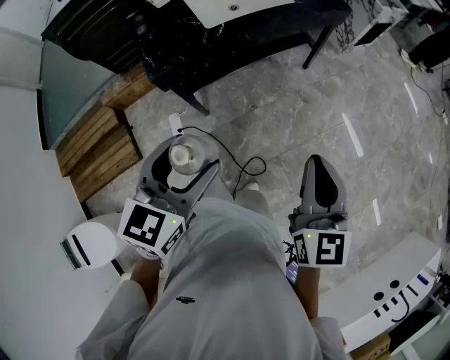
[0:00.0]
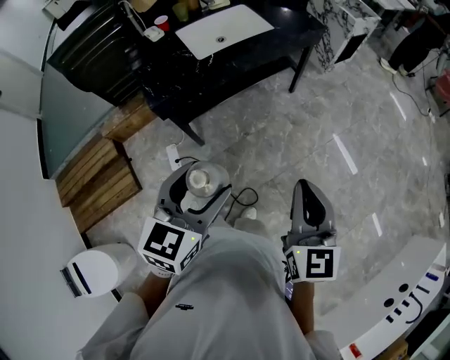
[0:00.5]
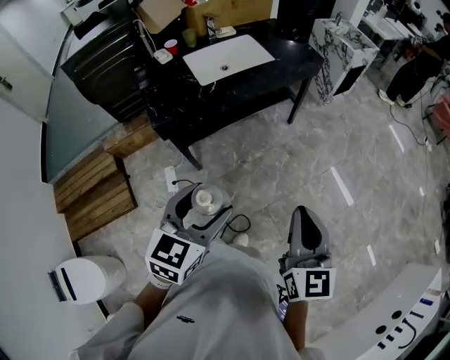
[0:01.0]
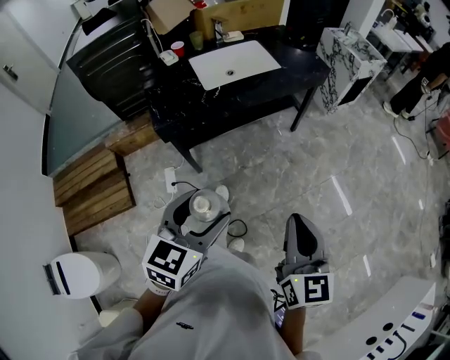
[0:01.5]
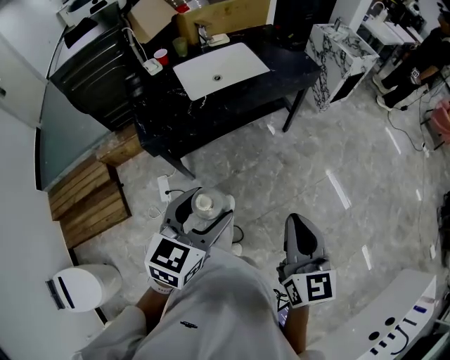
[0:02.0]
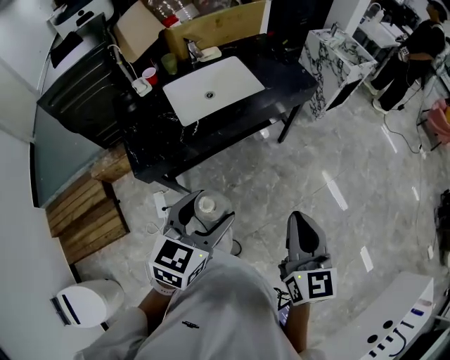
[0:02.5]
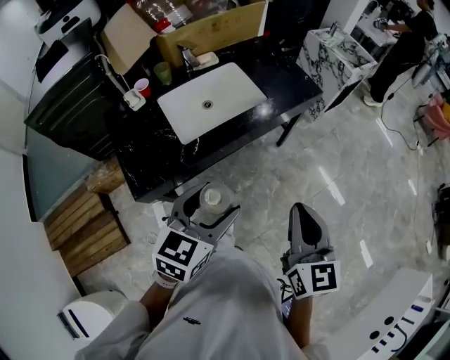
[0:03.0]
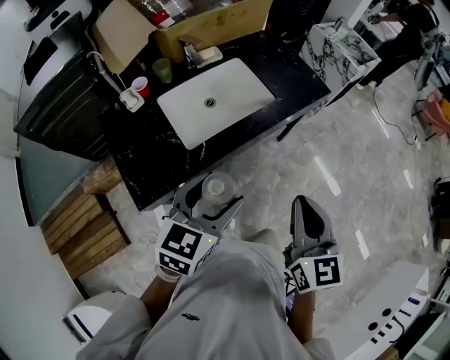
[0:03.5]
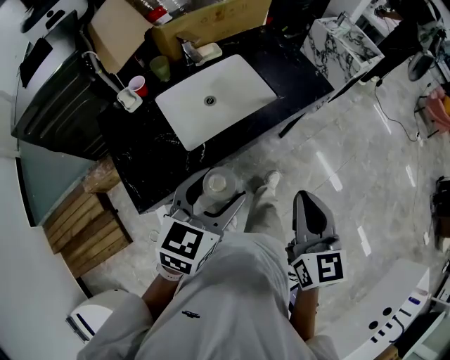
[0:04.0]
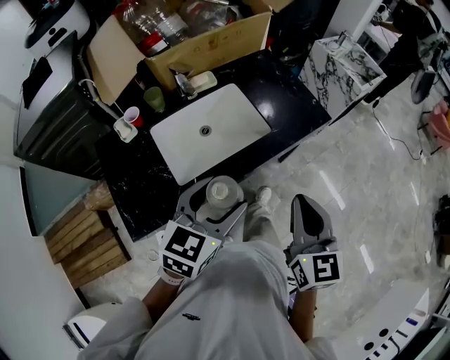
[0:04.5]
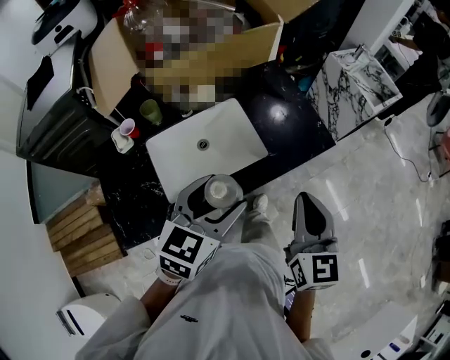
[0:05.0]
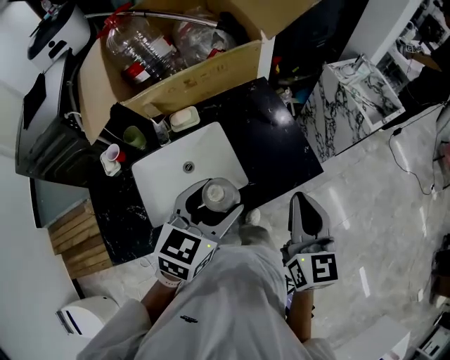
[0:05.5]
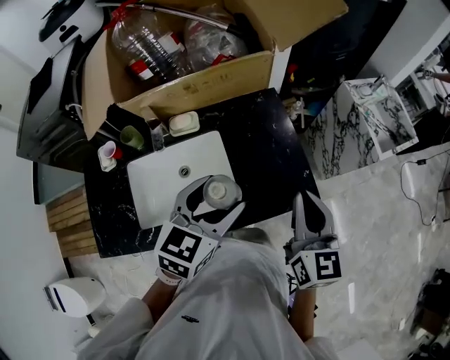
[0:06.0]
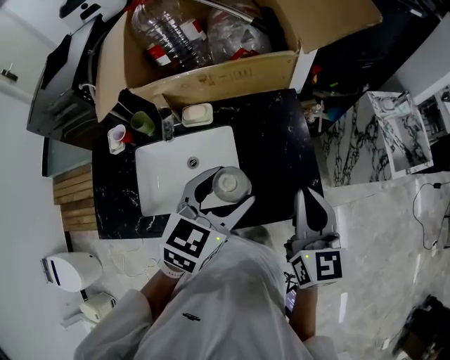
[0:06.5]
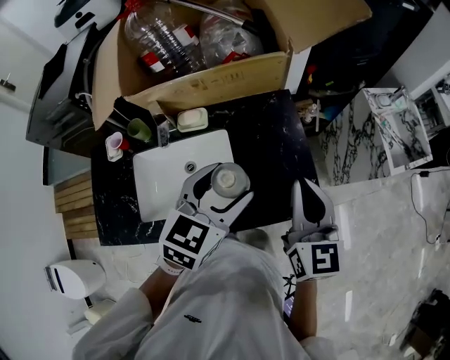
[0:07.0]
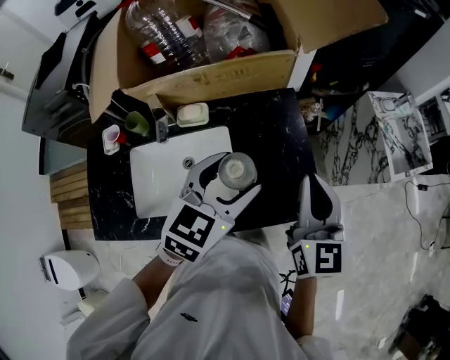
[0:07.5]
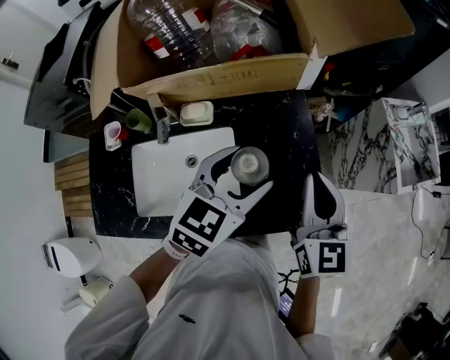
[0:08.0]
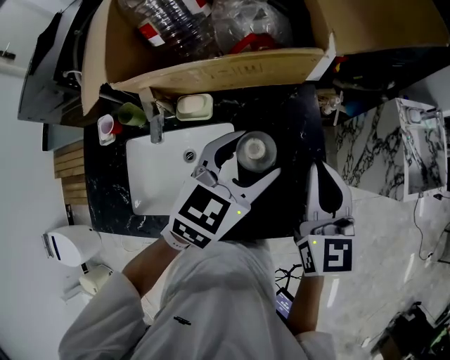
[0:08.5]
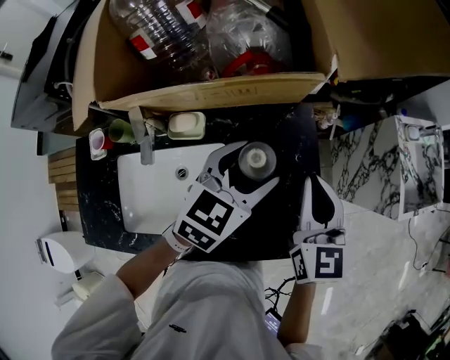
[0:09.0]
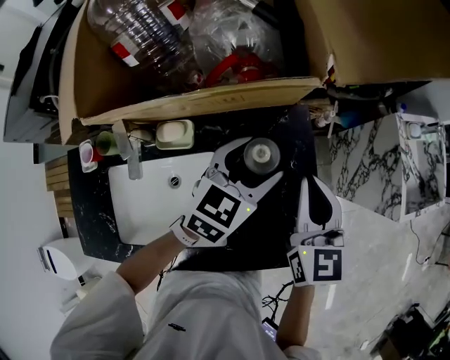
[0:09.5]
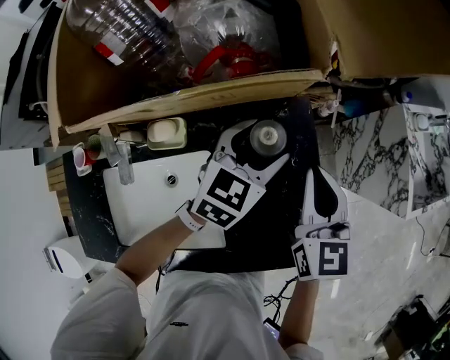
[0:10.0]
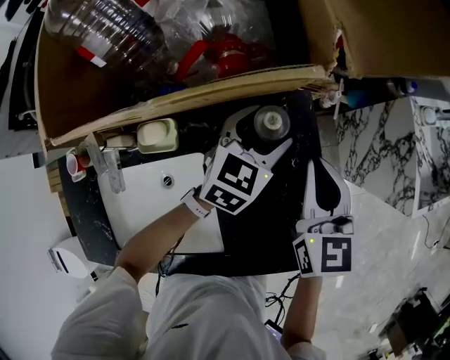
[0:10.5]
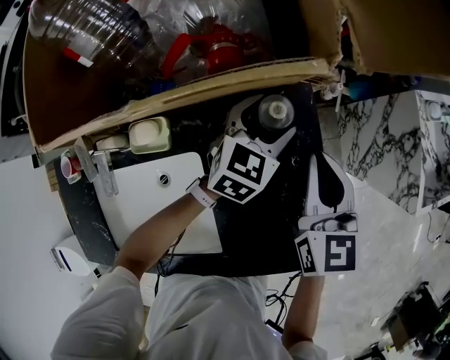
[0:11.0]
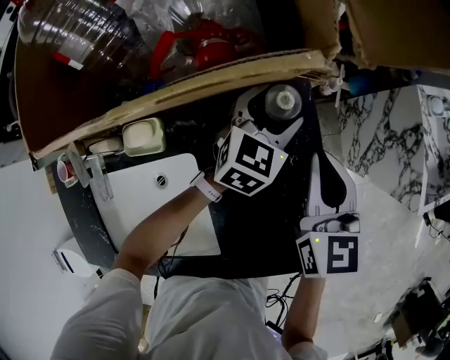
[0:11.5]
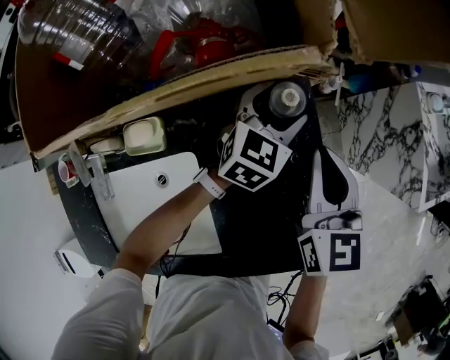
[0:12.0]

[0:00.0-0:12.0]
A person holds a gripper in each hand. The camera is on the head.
0:00.0 to 0:02.0: The left gripper is displaced to the right by about 10 cm, while the right gripper moves approximately 5 cm backward and comes back.
0:02.0 to 0:04.0: The left gripper shifts approximately 30 cm forward, while the right gripper shifts approximately 30 cm forward and to the left.
0:04.0 to 0:06.0: The pair of grippers is taken forward, about 40 cm.
0:06.0 to 0:08.0: Both grippers travel together forward, some 15 cm.
0:08.0 to 0:10.0: The two grippers go approximately 20 cm forward and downward.
0:10.0 to 0:12.0: The left gripper moves downward and forward, roughly 15 cm. Meanwhile the right gripper travels downward by approximately 5 cm.

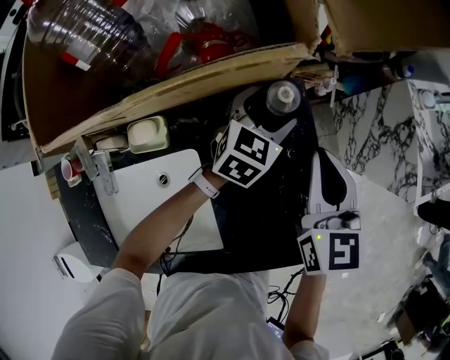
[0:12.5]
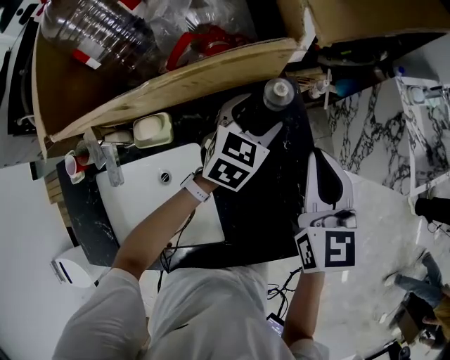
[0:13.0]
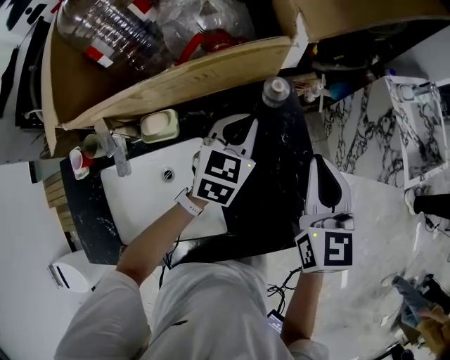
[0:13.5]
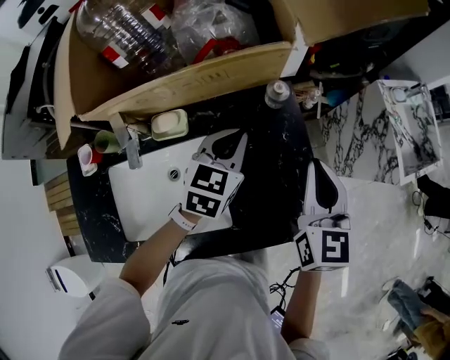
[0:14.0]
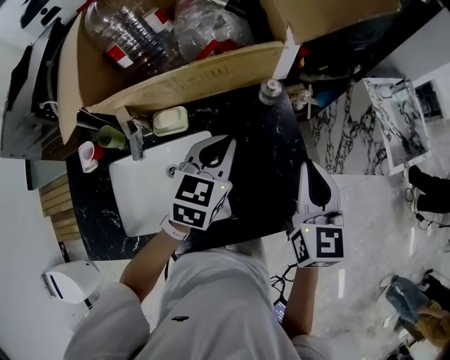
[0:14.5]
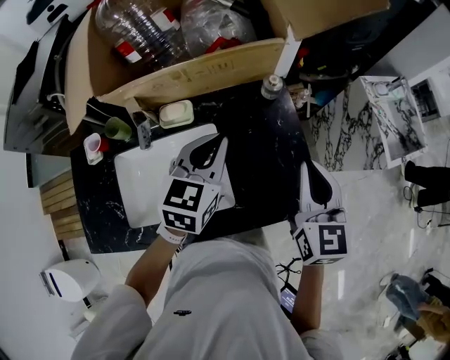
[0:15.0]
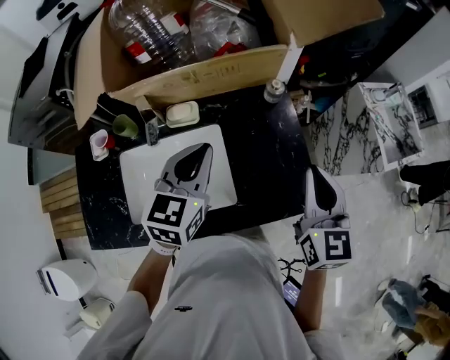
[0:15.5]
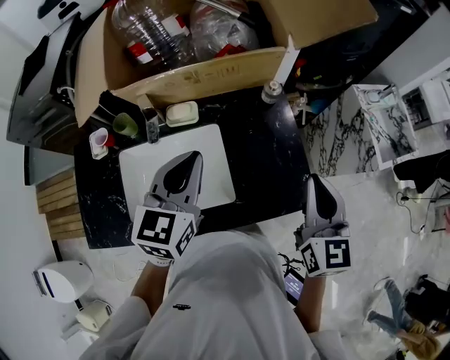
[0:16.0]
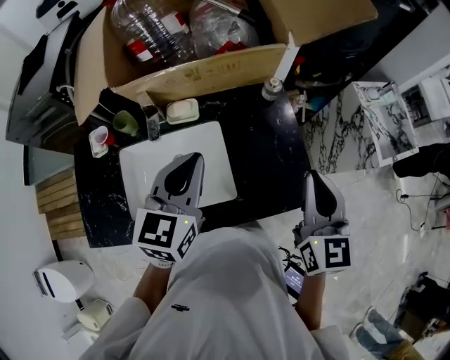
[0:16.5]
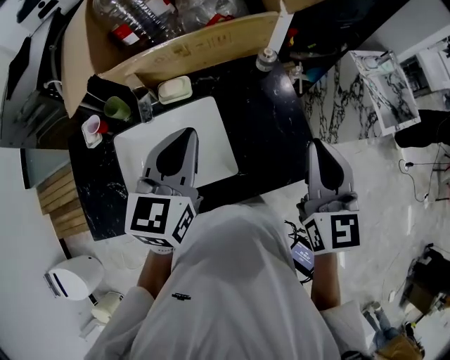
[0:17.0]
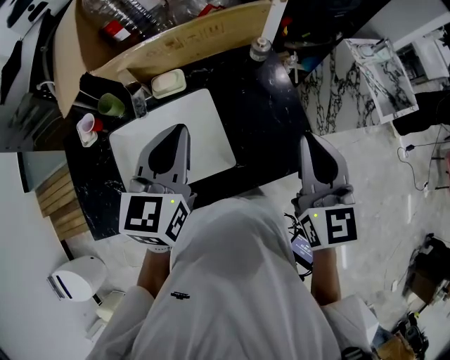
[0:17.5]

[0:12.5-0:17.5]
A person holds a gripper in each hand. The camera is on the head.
0:12.5 to 0:15.0: The right gripper goes roughly 20 cm backward and upward, while the left gripper goes about 35 cm backward, upward and to the left, and closes.
0:15.0 to 0:17.5: The left gripper heads backward, upward and to the left, covering about 15 cm; the right gripper heads backward and upward, covering roughly 10 cm.

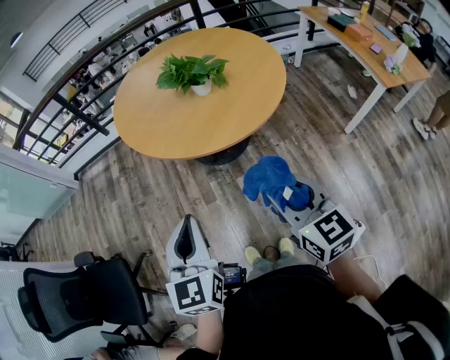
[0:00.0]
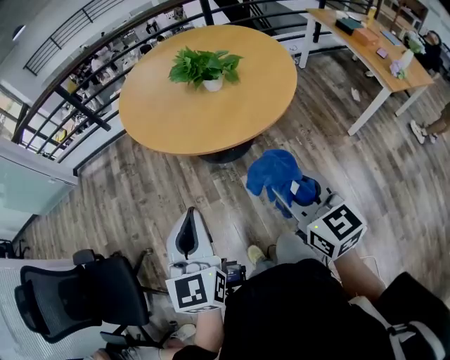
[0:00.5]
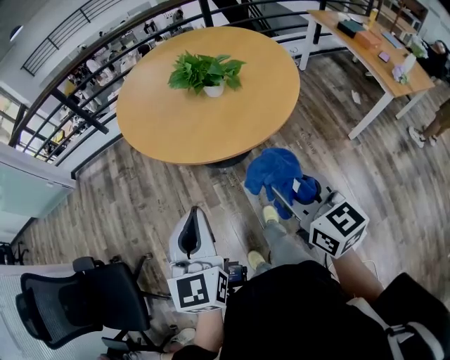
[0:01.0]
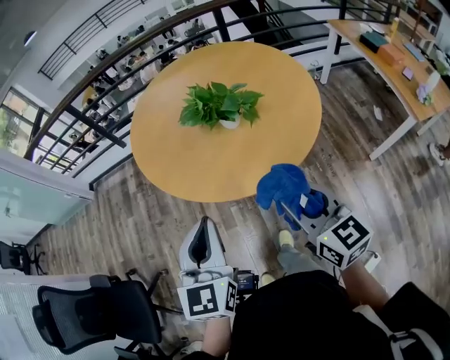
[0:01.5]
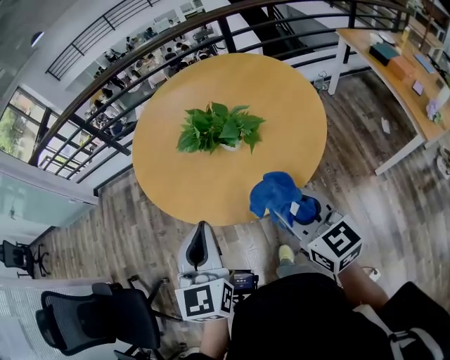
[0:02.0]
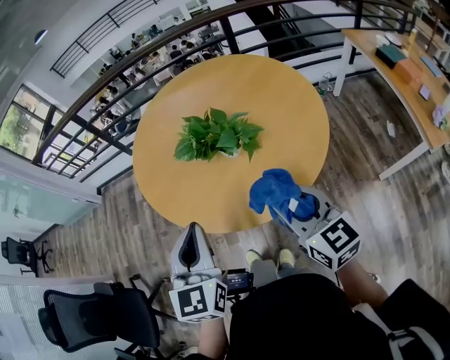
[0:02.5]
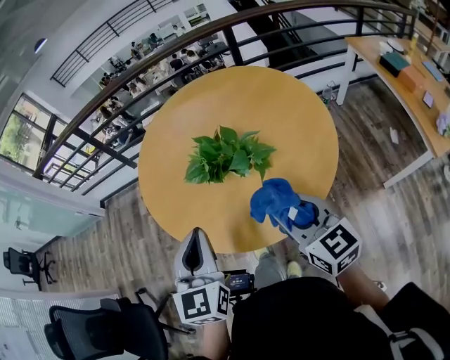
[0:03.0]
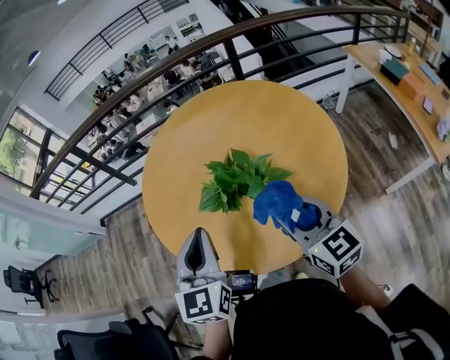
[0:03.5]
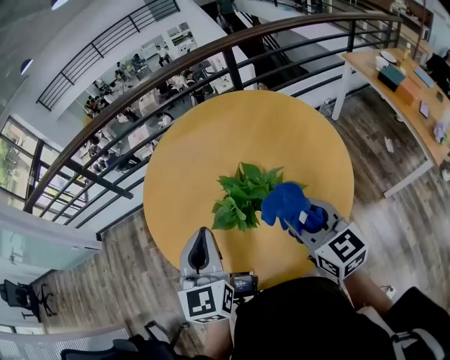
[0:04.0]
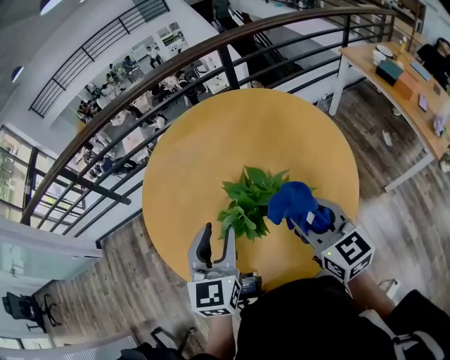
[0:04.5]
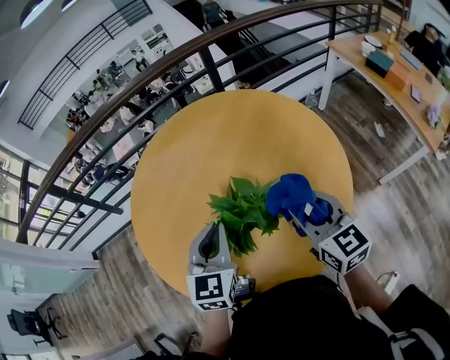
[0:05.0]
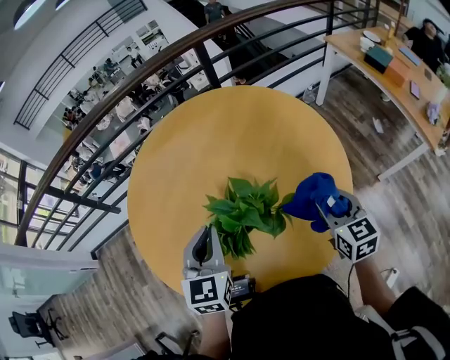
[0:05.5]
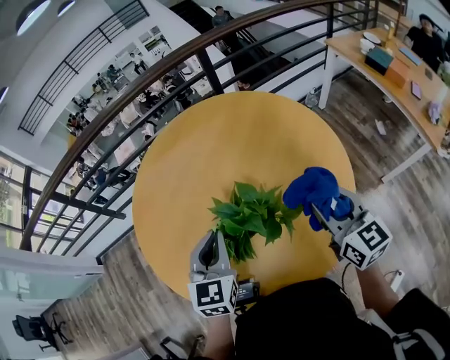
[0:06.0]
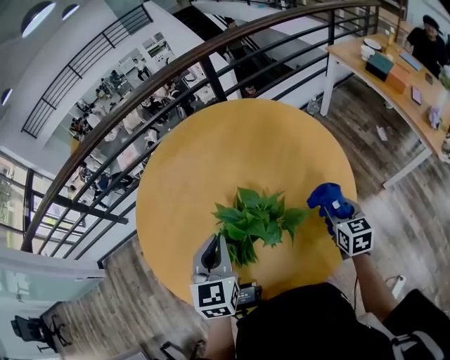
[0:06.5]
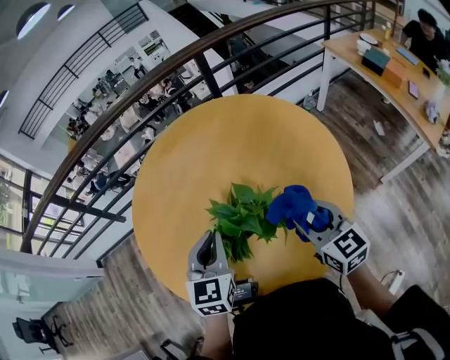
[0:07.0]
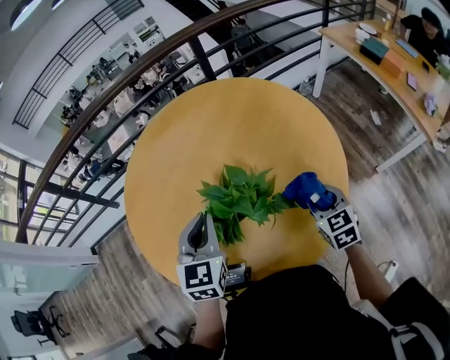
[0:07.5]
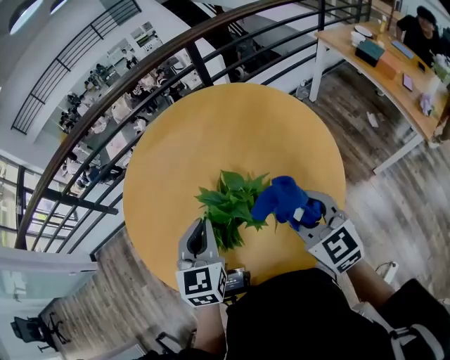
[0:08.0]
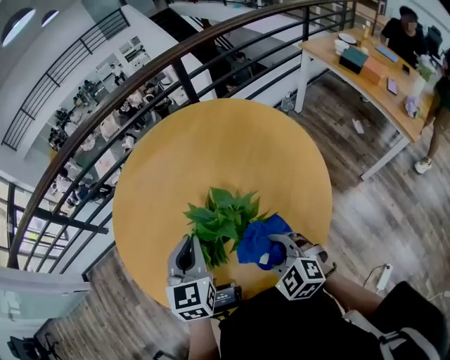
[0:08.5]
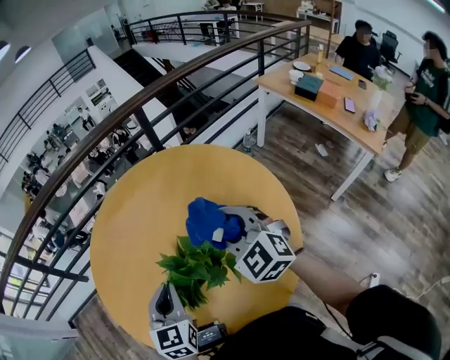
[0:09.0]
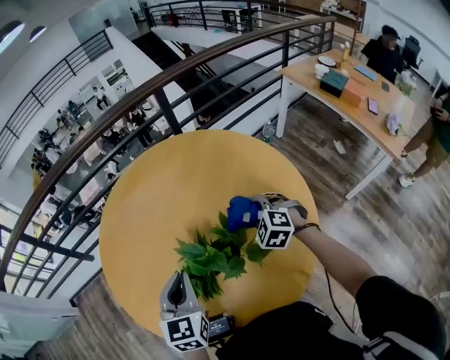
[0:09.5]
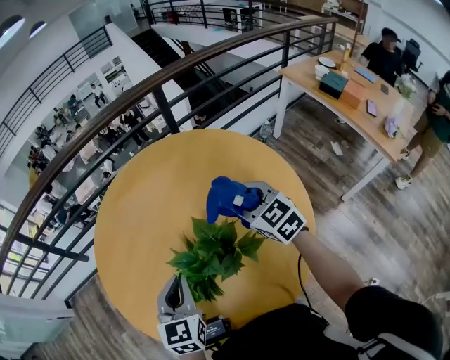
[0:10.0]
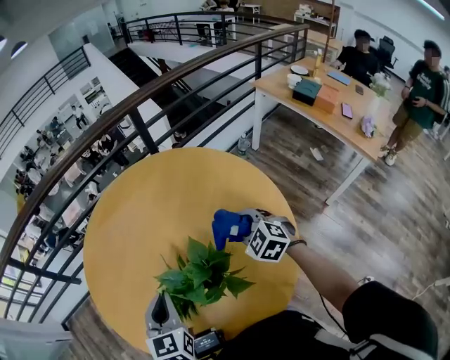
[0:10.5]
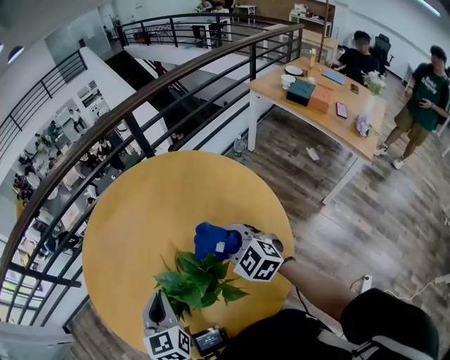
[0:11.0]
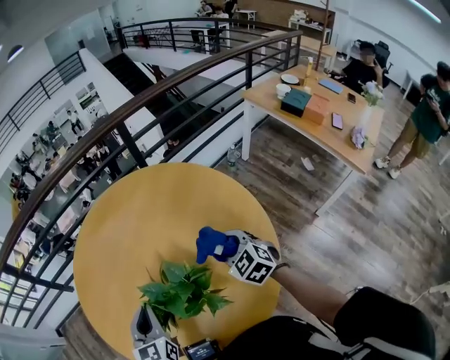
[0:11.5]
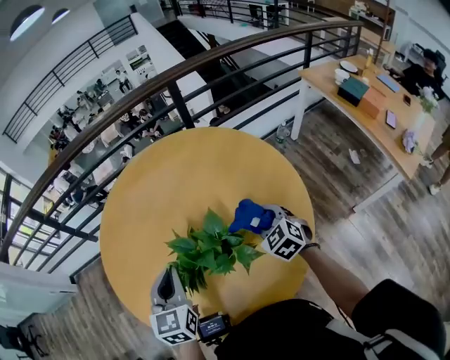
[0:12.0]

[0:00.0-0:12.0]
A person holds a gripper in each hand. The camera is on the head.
0:00.0 to 0:02.0: Both grippers move forward, about 25 cm.
0:02.0 to 0:04.0: Both grippers move forward, some 25 cm.
0:04.0 to 0:06.0: The right gripper shifts approximately 10 cm to the right and forward. Meanwhile the left gripper moves forward and downward, some 10 cm, and opens, then closes again.
0:06.0 to 0:08.0: The right gripper moves up and down over about 15 cm, changing direction 3 times, and turns by roughly 20 degrees.
0:08.0 to 0:10.0: The right gripper is displaced forward by approximately 15 cm.
0:10.0 to 0:12.0: The right gripper swings up and down, approximately 10 cm each way, with 2 reversals, and rotates about 20 degrees.
